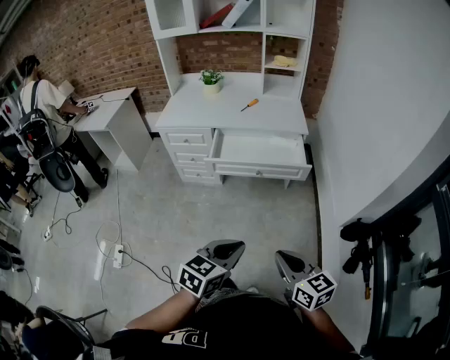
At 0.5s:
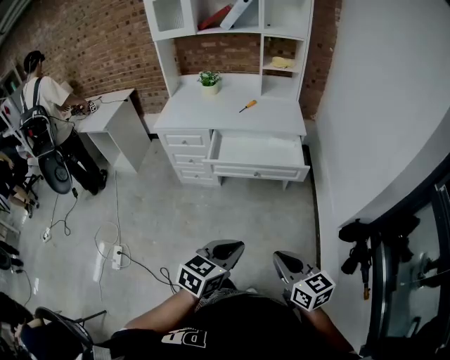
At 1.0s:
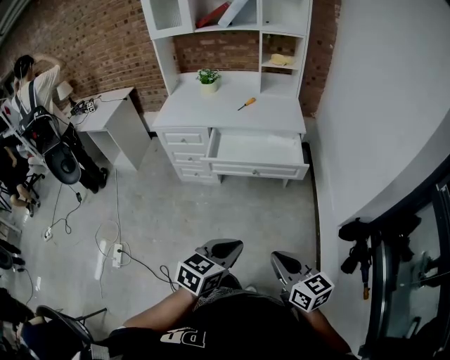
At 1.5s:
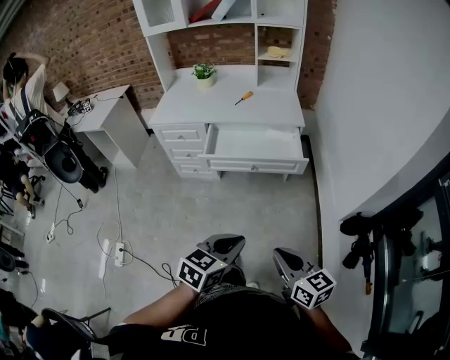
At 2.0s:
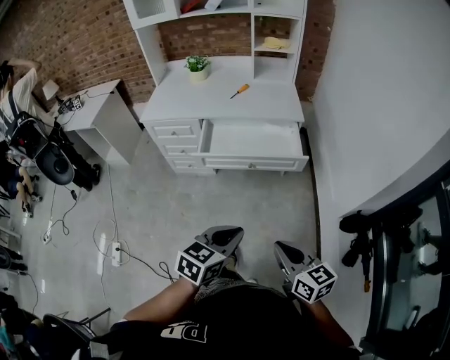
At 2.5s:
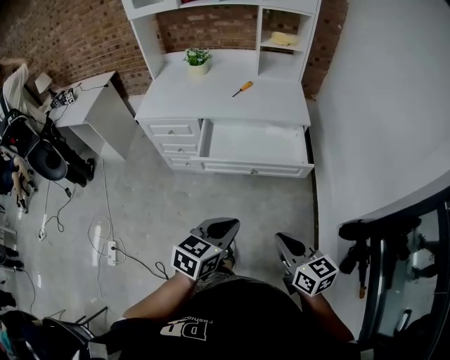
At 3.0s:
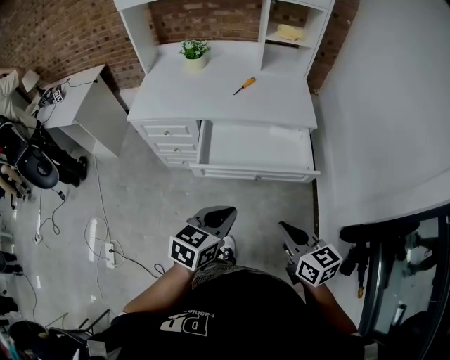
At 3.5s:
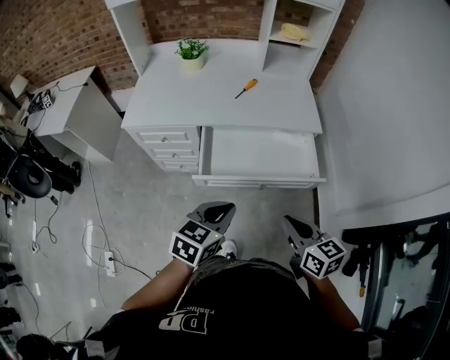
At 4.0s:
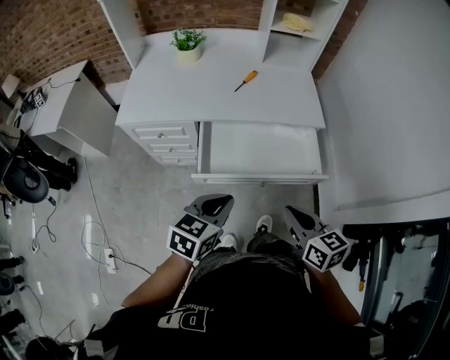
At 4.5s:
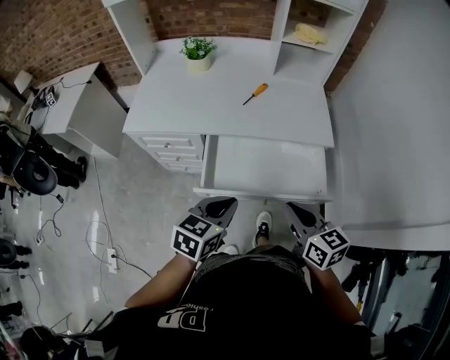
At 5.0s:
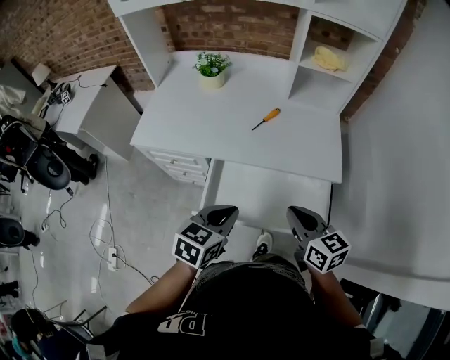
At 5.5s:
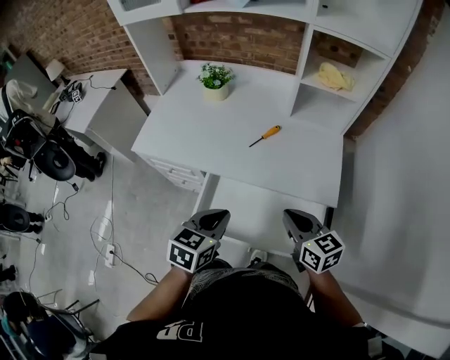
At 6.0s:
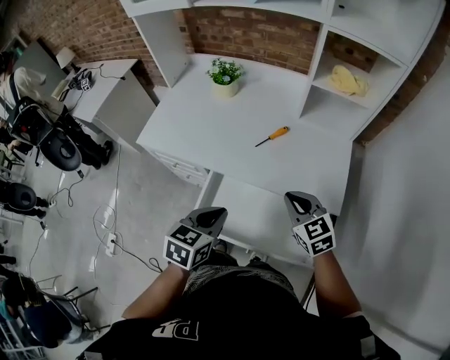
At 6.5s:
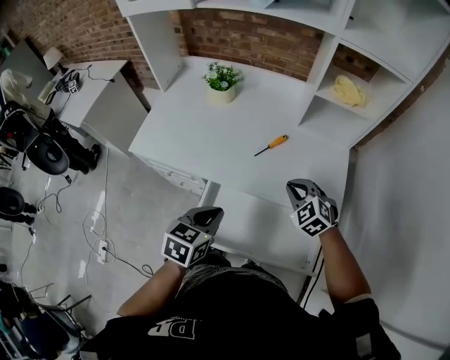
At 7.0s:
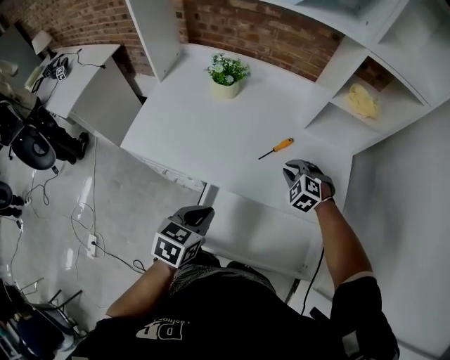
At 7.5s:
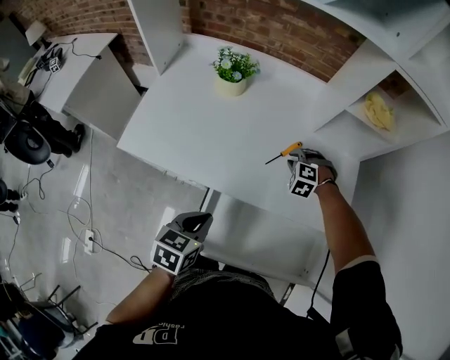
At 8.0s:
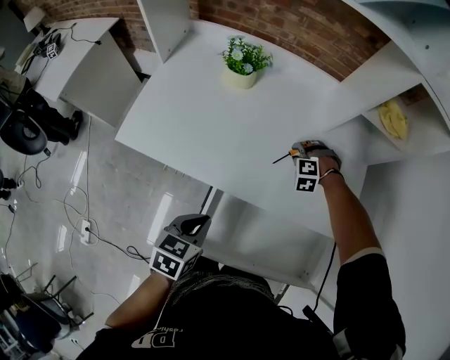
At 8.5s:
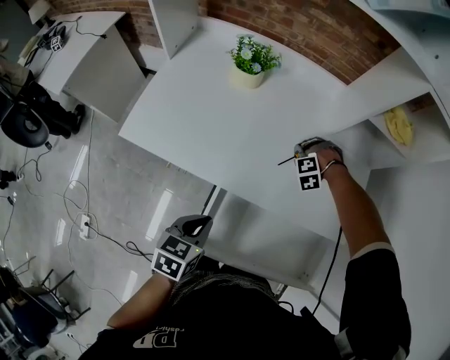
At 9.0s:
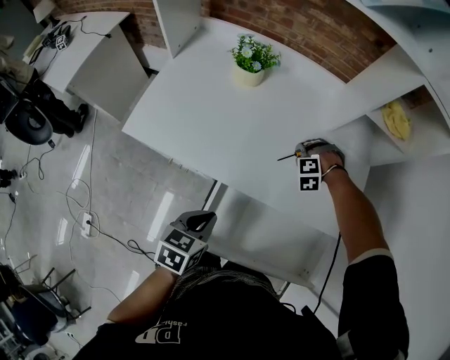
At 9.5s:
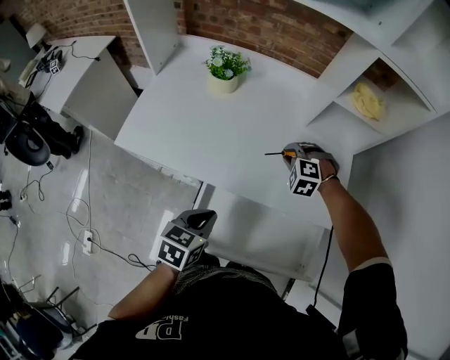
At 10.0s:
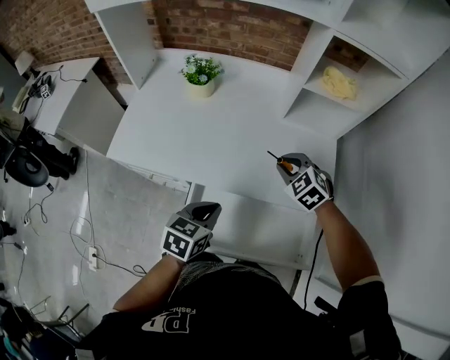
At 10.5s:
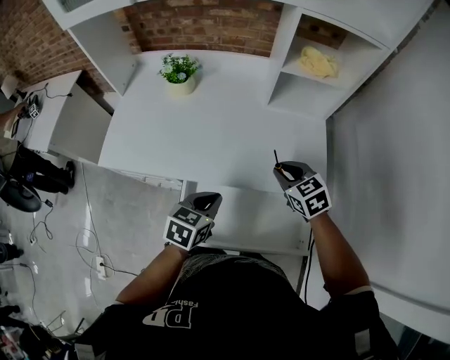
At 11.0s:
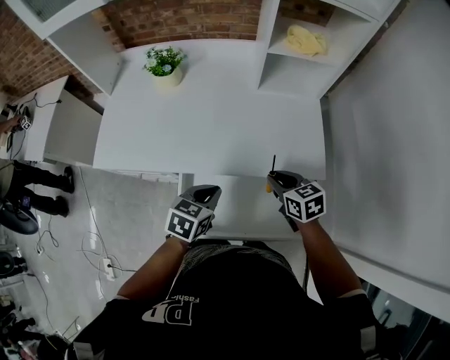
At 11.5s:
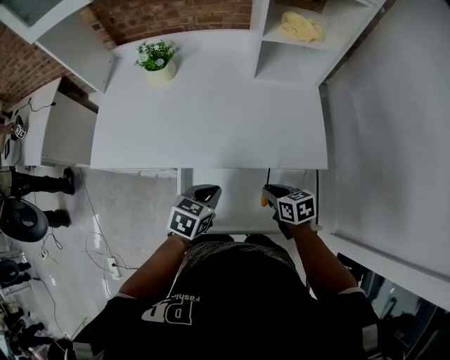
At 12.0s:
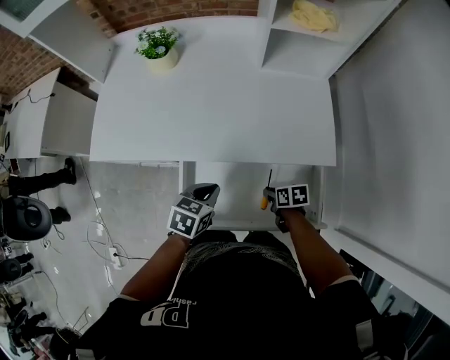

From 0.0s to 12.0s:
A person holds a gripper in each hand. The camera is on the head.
From 0.0s to 2.0s: The two grippers go roughly 10 cm forward.
From 2.0s to 4.0s: The left gripper travels forward and to the left by some 35 cm. Meanwhile the right gripper travels forward by approximately 30 cm.
From 4.0s to 6.0s: The left gripper is displaced forward by some 20 cm, and rotates about 30 degrees. Meanwhile the right gripper moves forward, about 35 cm, and turns by roughly 40 degrees.
From 6.0s to 8.0s: The left gripper goes approximately 20 cm to the left, downward and forward, while the right gripper shifts approximately 35 cm forward and downward, rolls counterclockwise, seen from behind, by some 70 degrees, and opens its fingers.
From 8.0s to 10.0s: The right gripper moves upward, roughly 15 cm, and twists some 50 degrees clockwise, seen from behind. The left gripper ends up some 10 cm from where it was.
From 10.0s to 12.0s: The right gripper shifts roughly 30 cm downward and backward, and twists roughly 80 degrees clockwise, seen from behind; the left gripper shifts about 10 cm downward.

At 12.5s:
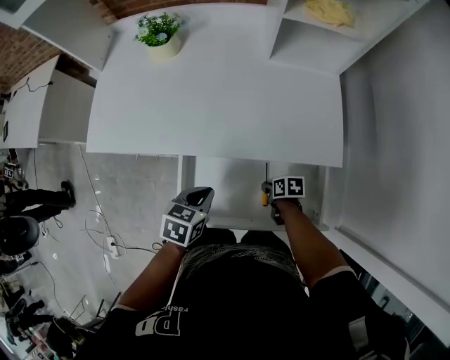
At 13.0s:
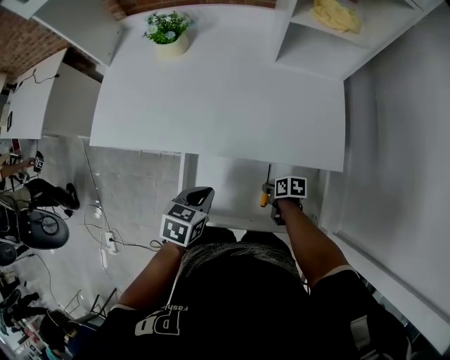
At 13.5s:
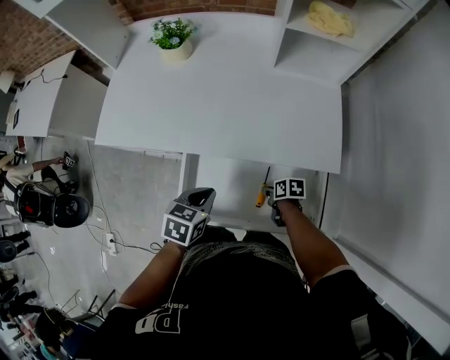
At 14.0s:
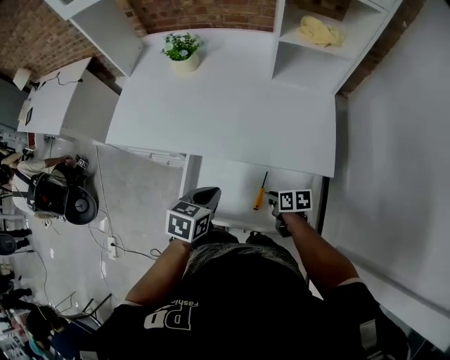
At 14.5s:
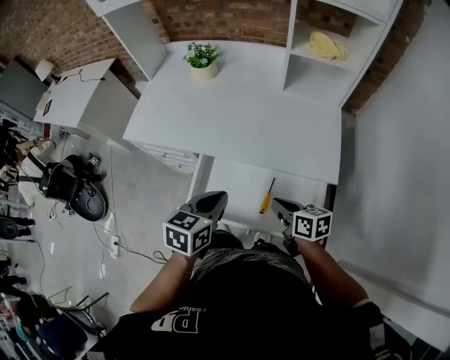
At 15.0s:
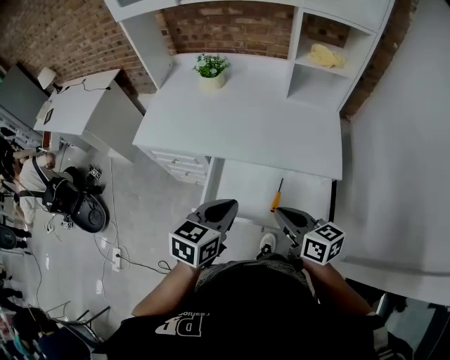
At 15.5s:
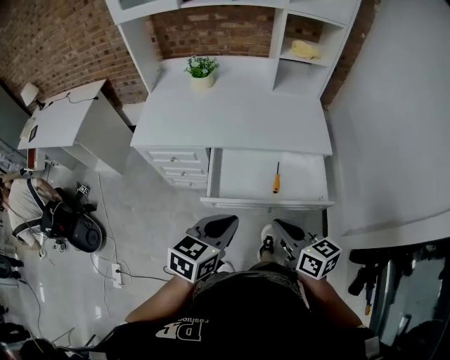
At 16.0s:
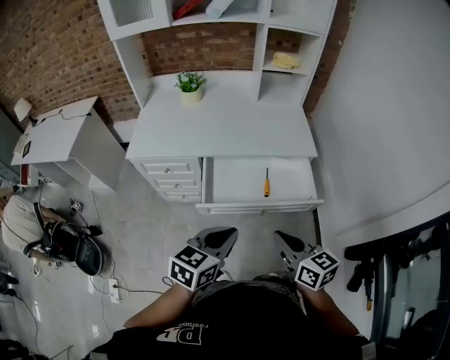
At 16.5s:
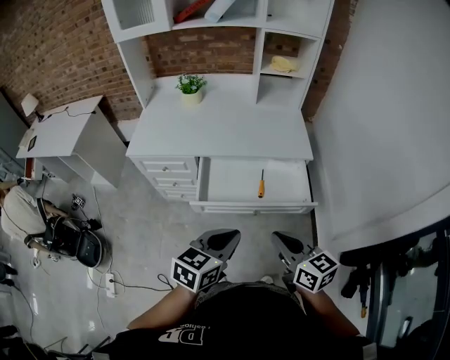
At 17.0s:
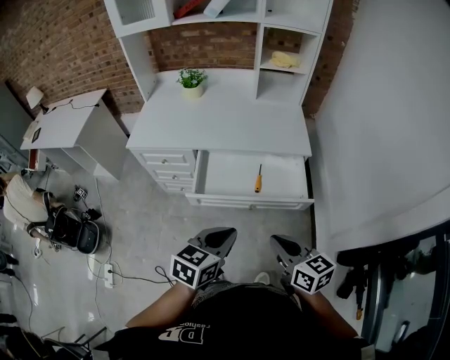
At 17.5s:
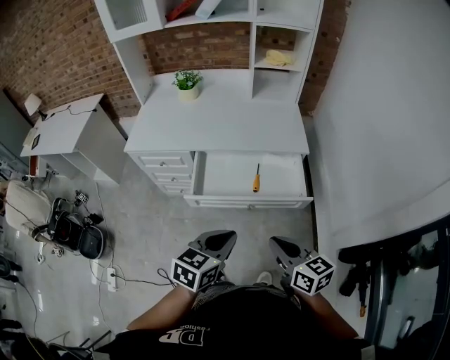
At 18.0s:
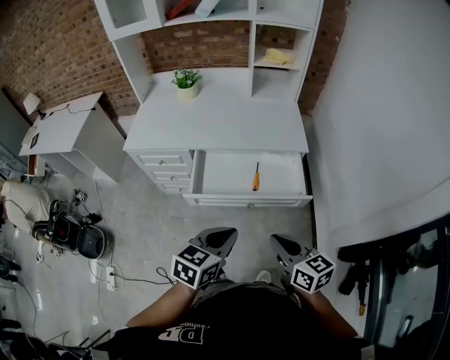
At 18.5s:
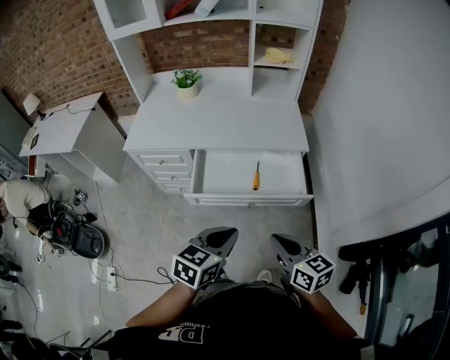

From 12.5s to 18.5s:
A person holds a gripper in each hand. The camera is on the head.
From 12.5s to 14.5s: The left gripper goes approximately 15 cm upward and backward, and swivels some 20 degrees. The right gripper travels upward by some 25 cm, and turns by some 40 degrees.
From 14.5s to 16.5s: The right gripper moves backward and upward, approximately 35 cm, and swivels roughly 30 degrees. The left gripper heads backward, covering about 25 cm, and rotates roughly 20 degrees.
From 16.5s to 18.5s: The right gripper changes place by approximately 5 cm.

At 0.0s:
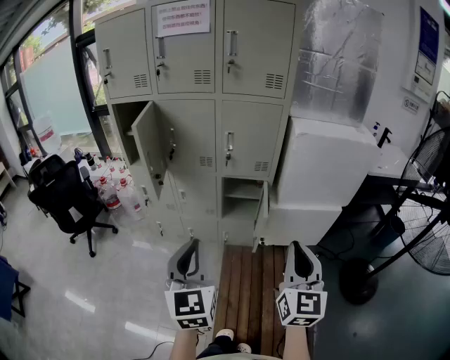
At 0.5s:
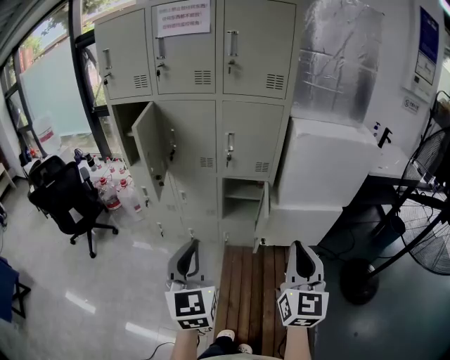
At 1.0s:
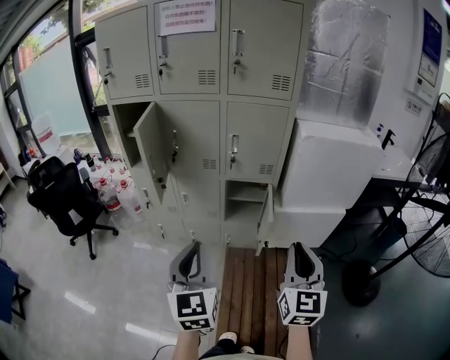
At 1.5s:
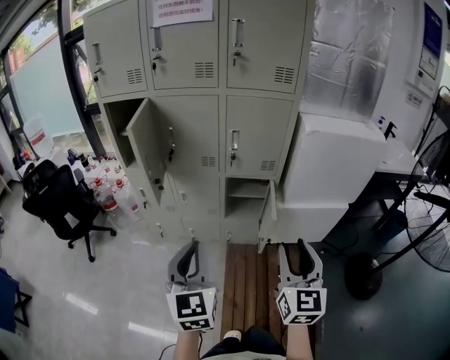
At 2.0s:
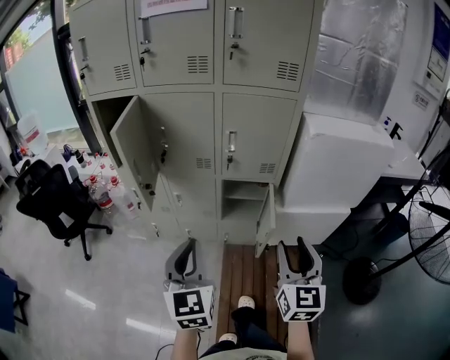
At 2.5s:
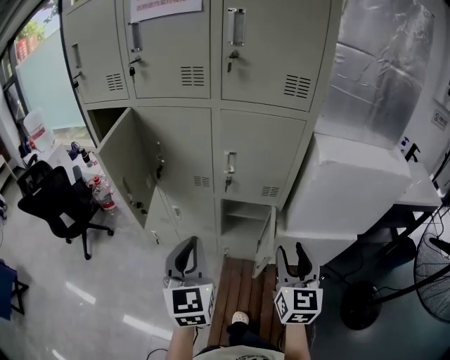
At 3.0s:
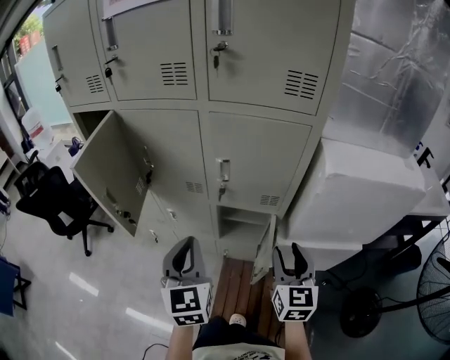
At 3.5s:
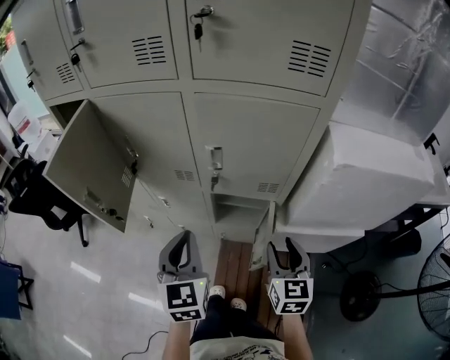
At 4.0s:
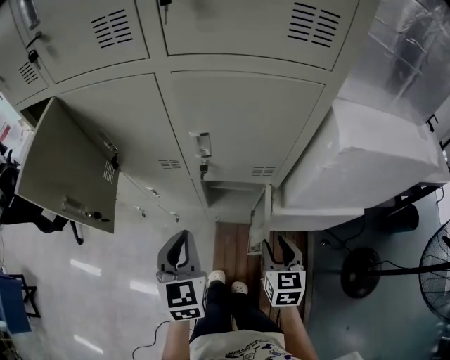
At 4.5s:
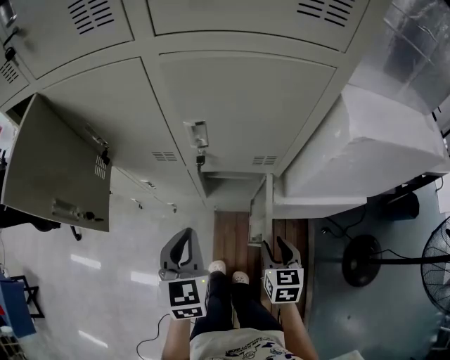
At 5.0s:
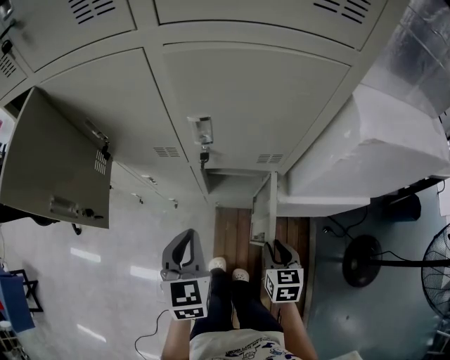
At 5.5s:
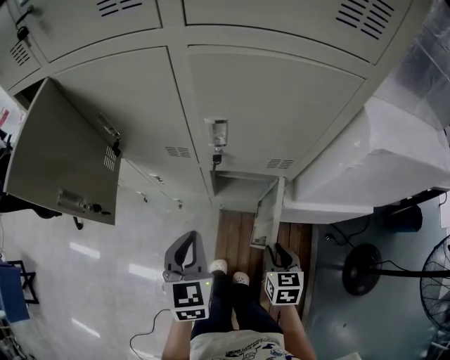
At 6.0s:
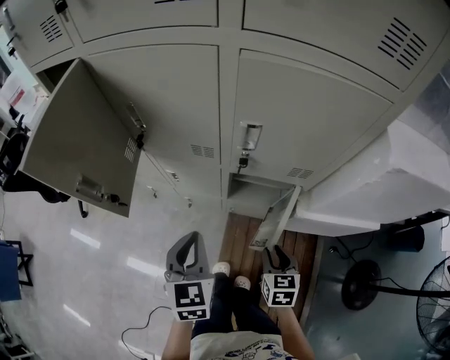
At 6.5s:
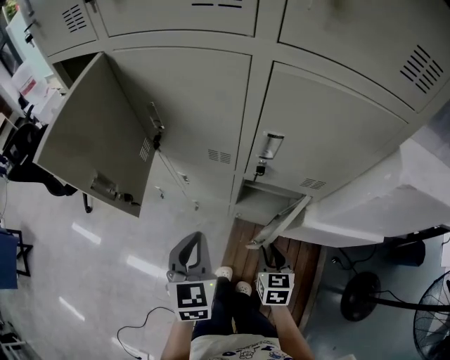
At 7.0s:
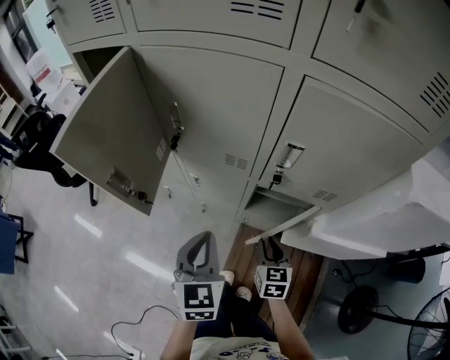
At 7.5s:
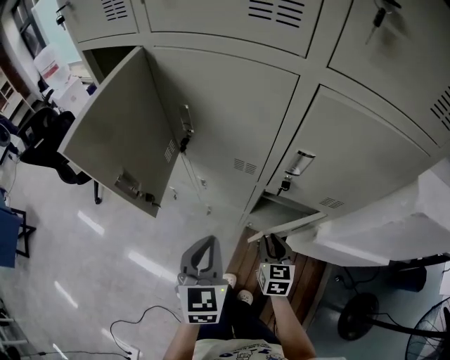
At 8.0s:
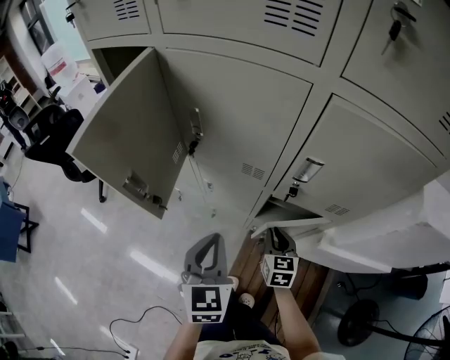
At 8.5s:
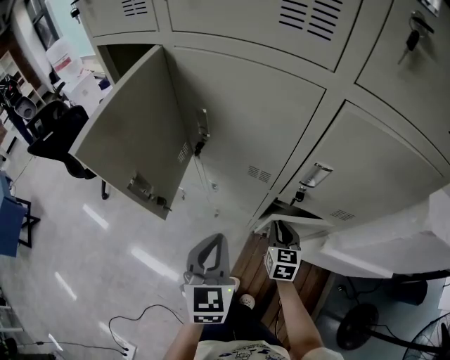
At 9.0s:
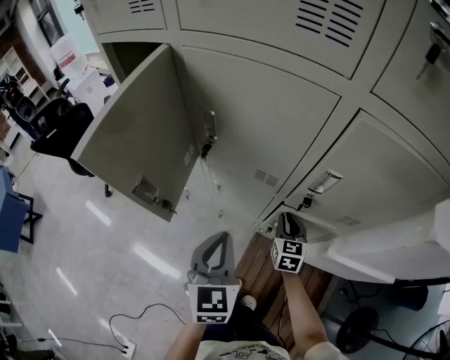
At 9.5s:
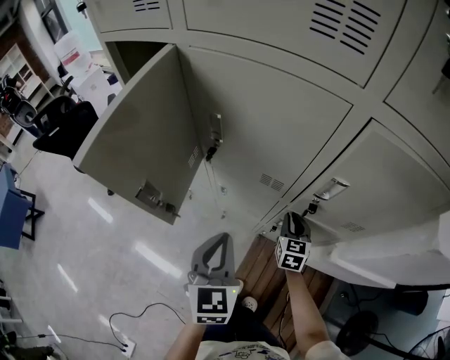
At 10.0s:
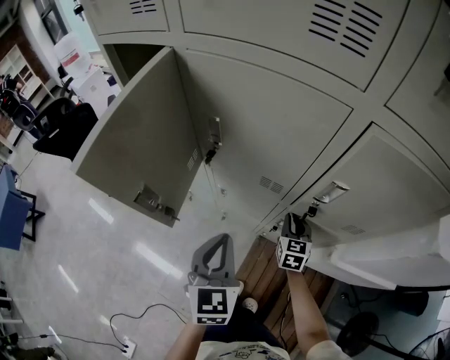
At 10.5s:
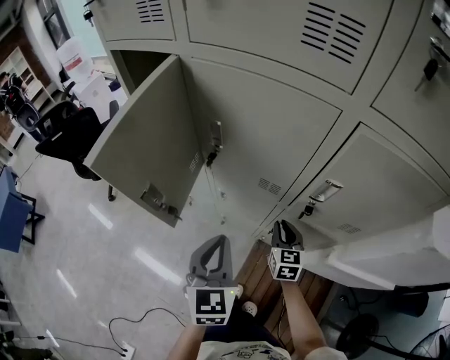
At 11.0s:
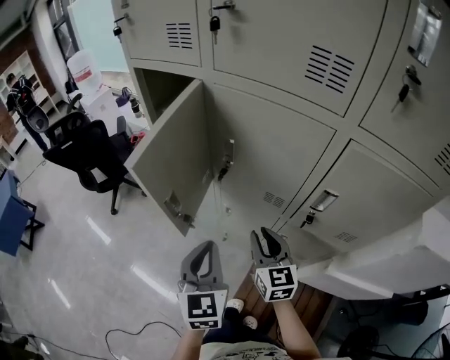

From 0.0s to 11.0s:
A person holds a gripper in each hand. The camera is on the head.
From 0.0s to 2.0s: Both grippers move forward, about 15 cm. The right gripper opens up.
From 2.0s to 3.5s: The left gripper shifts about 20 cm forward, while the right gripper shifts approximately 25 cm forward and downward.
From 3.5s to 5.5s: The left gripper travels downward by approximately 10 cm. The right gripper is displaced downward by roughly 15 cm, and swivels some 20 degrees.
From 5.5s to 7.5s: The right gripper heads to the left and forward, covering some 20 cm. Meanwhile the left gripper travels to the left by some 10 cm.
From 7.5s to 9.0s: The right gripper travels forward by approximately 10 cm.
From 9.0s to 11.0s: The left gripper is displaced to the left by some 5 cm, while the right gripper goes roughly 20 cm upward and to the left, and rotates approximately 20 degrees.
